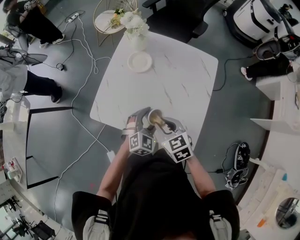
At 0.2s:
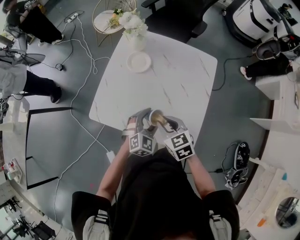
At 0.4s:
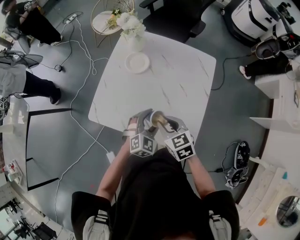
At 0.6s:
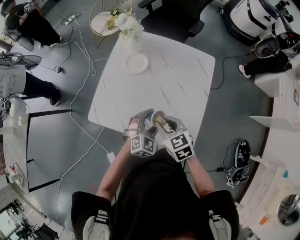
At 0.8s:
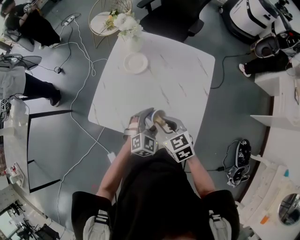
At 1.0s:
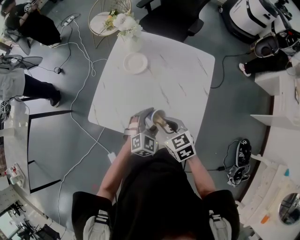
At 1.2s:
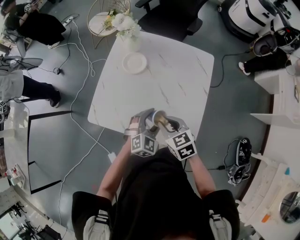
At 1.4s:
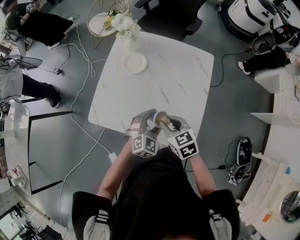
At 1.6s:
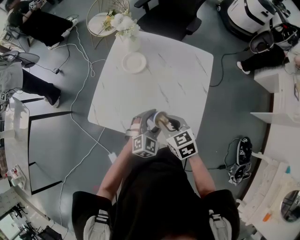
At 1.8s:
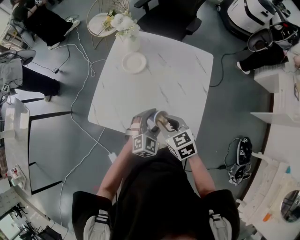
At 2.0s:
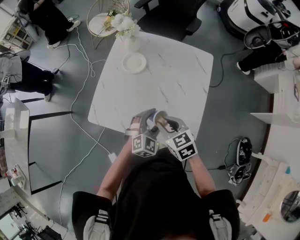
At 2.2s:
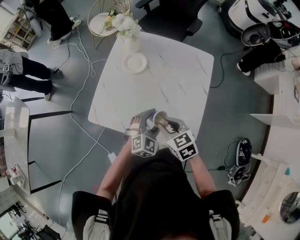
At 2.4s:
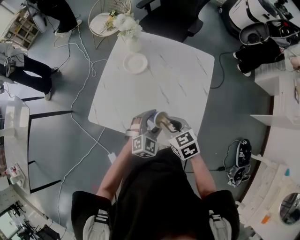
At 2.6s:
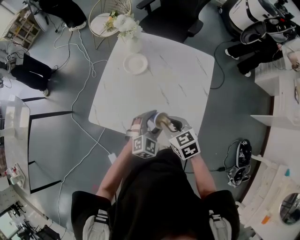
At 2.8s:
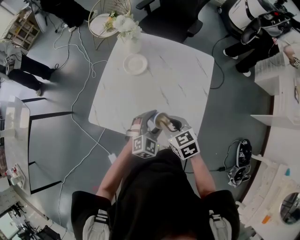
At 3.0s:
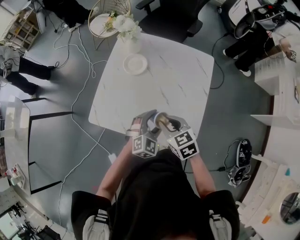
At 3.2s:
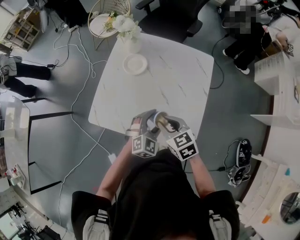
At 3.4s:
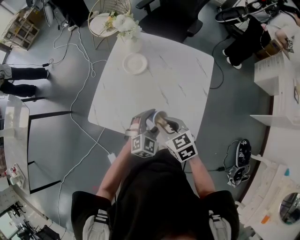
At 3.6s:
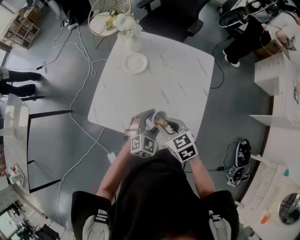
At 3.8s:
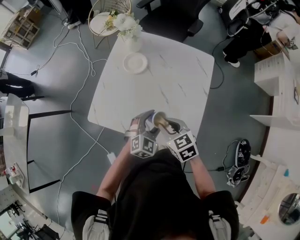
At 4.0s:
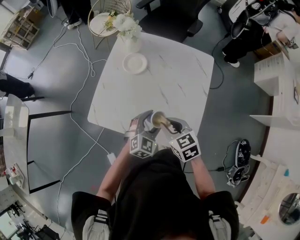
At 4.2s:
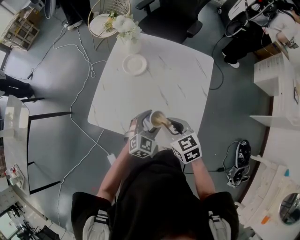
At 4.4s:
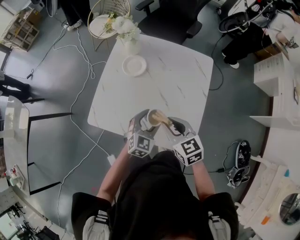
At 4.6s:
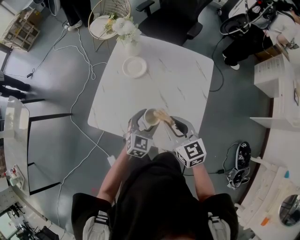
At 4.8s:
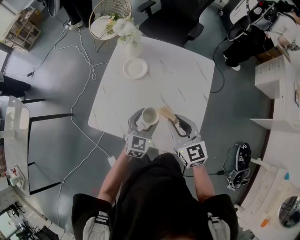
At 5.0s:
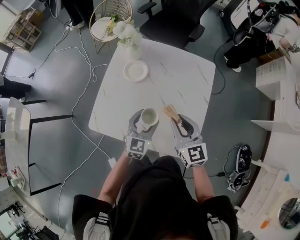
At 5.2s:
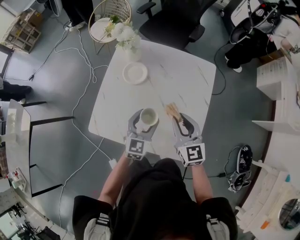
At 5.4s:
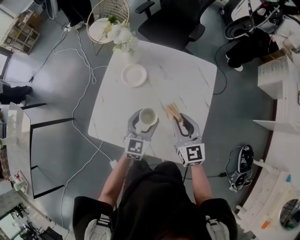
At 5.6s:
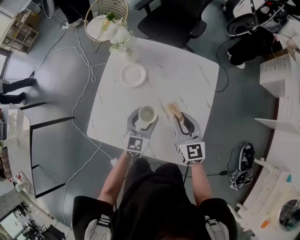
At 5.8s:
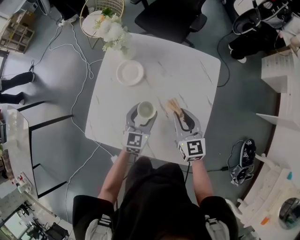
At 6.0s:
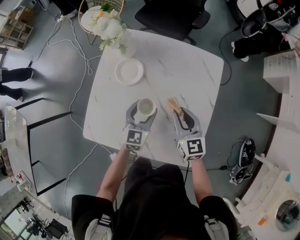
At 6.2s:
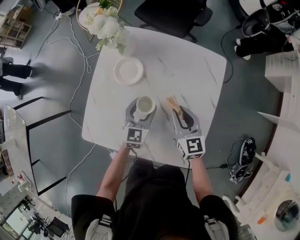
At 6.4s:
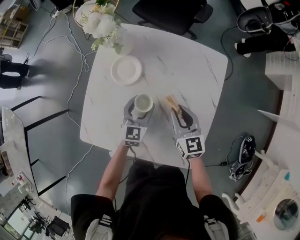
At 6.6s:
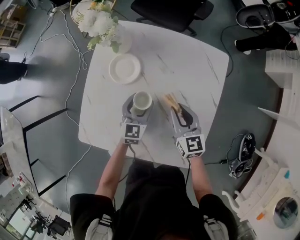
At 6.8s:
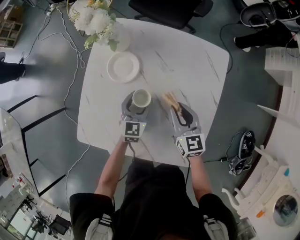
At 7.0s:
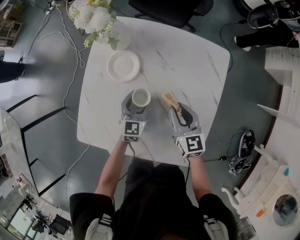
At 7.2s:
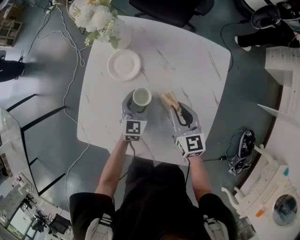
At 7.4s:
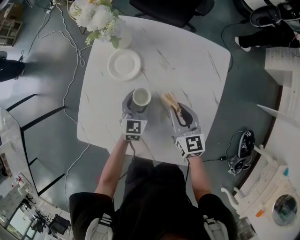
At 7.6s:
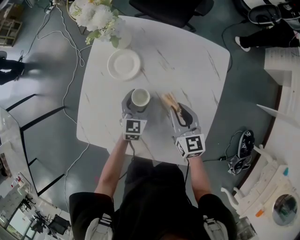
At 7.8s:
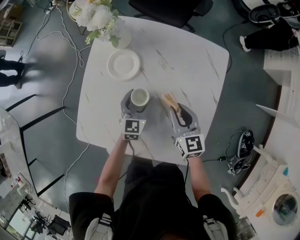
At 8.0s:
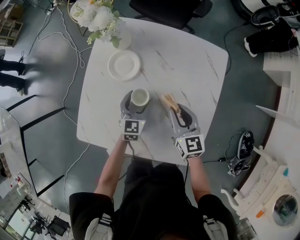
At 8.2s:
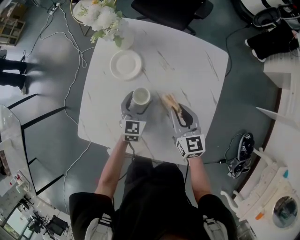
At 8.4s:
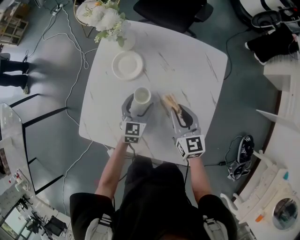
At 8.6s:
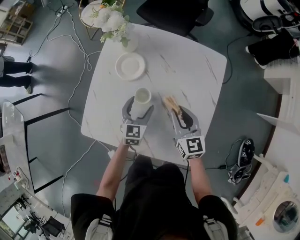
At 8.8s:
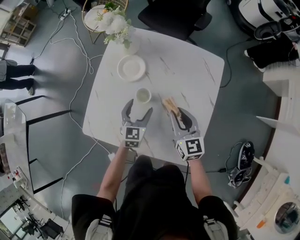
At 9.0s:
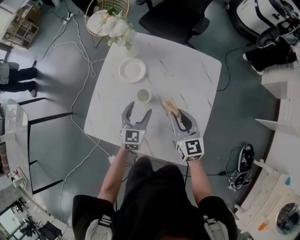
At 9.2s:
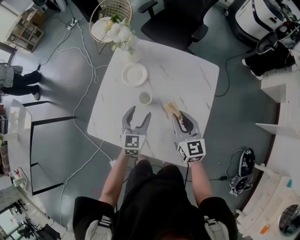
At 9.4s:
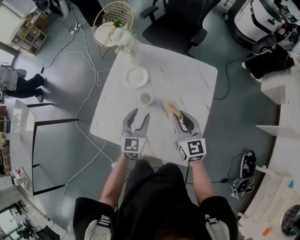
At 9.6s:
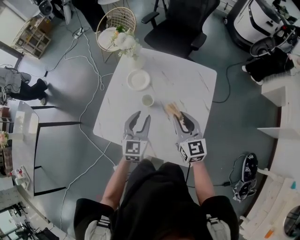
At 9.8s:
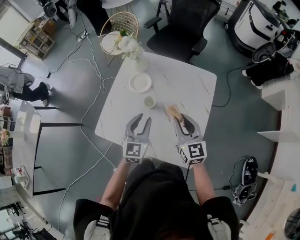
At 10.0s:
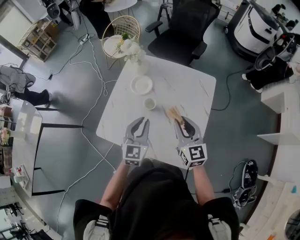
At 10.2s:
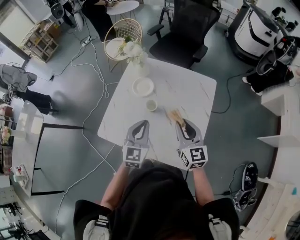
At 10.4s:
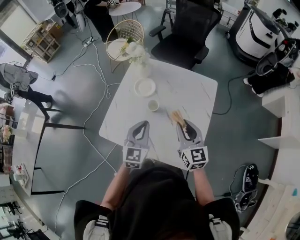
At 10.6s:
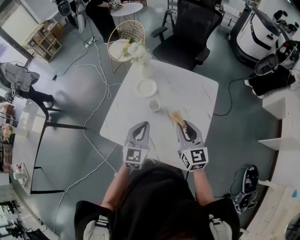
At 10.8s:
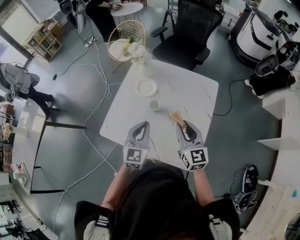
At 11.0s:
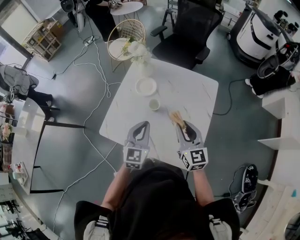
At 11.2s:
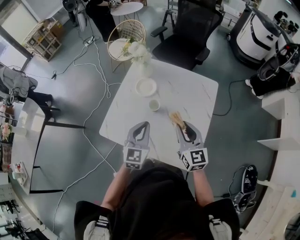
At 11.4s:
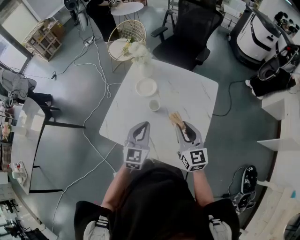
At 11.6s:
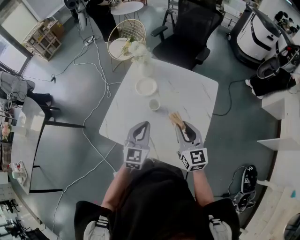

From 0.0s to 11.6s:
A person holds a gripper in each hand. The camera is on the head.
From 0.0s to 2.8s: The grippers stay close to where they were, moving slightly.
From 2.8s to 4.4s: The grippers make only small movements.
From 4.4s to 5.8s: The left gripper heads forward, covering some 15 cm, while the right gripper moves forward and to the right, roughly 15 cm, and changes its angle by approximately 20 degrees.
From 5.8s to 7.2s: The right gripper goes roughly 10 cm downward; the left gripper heads downward and forward, covering roughly 10 cm.
From 7.2s to 8.8s: The right gripper moves upward, approximately 5 cm. The left gripper travels backward and upward by roughly 10 cm.
From 8.8s to 10.2s: The two grippers go about 20 cm upward and backward. The left gripper closes.
From 10.2s to 11.6s: The grippers move only a little.

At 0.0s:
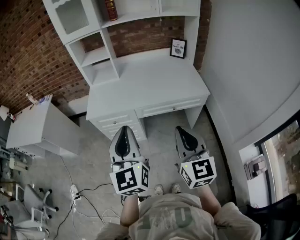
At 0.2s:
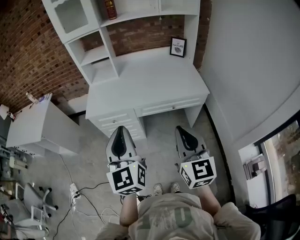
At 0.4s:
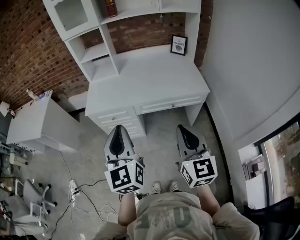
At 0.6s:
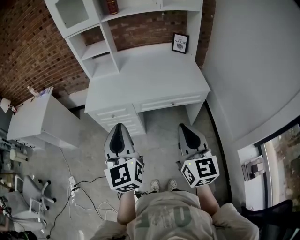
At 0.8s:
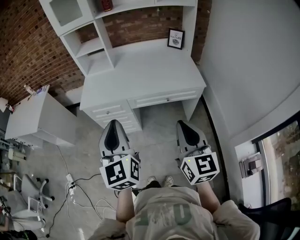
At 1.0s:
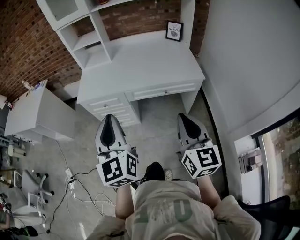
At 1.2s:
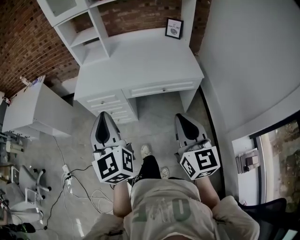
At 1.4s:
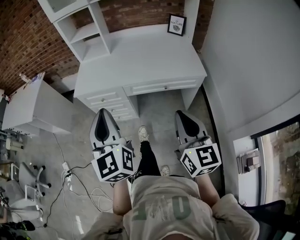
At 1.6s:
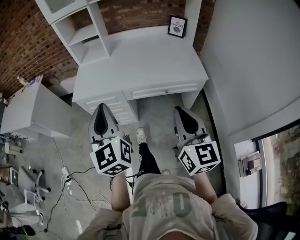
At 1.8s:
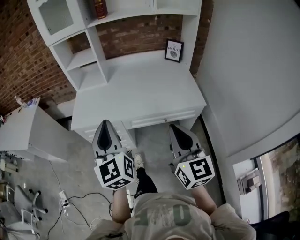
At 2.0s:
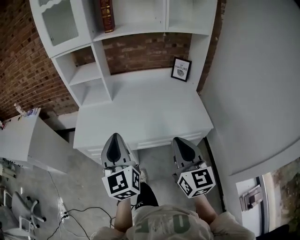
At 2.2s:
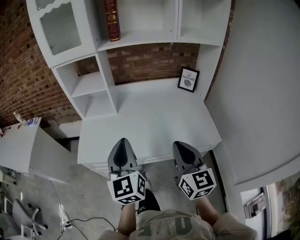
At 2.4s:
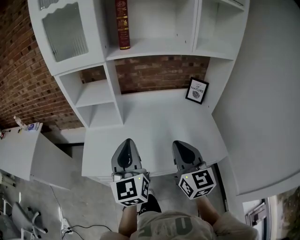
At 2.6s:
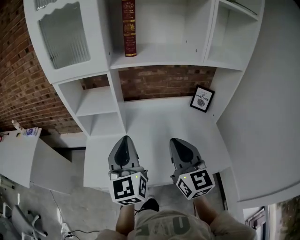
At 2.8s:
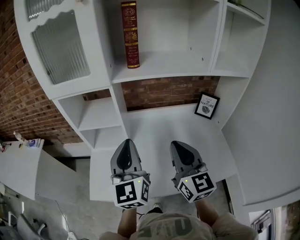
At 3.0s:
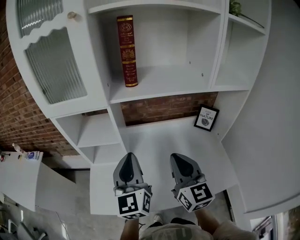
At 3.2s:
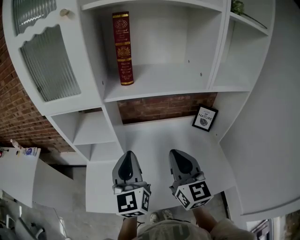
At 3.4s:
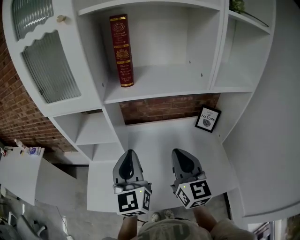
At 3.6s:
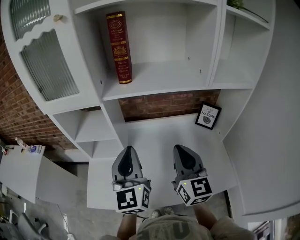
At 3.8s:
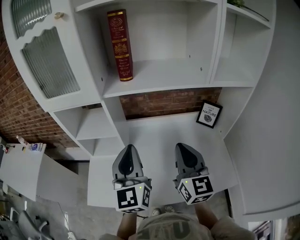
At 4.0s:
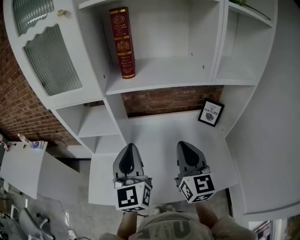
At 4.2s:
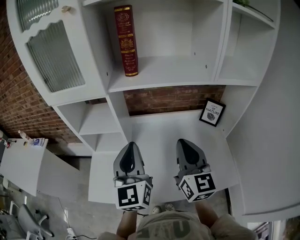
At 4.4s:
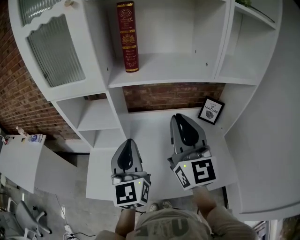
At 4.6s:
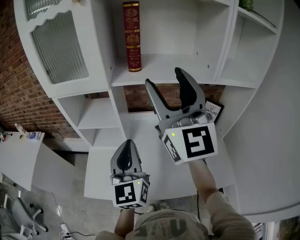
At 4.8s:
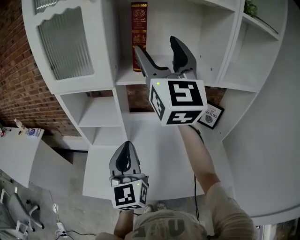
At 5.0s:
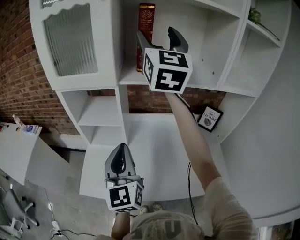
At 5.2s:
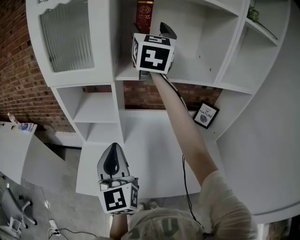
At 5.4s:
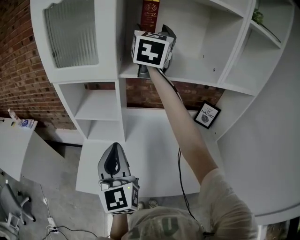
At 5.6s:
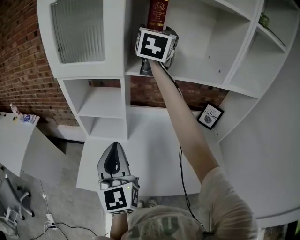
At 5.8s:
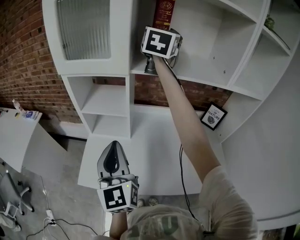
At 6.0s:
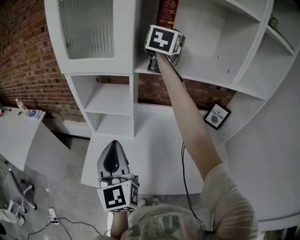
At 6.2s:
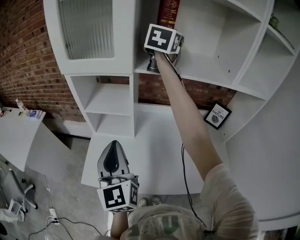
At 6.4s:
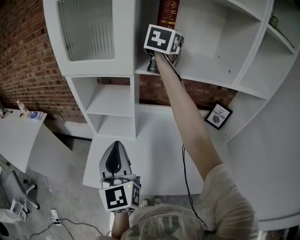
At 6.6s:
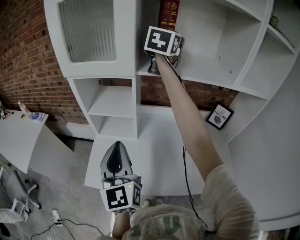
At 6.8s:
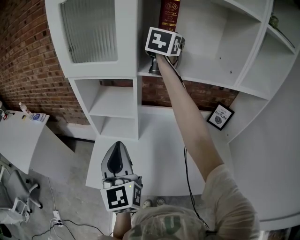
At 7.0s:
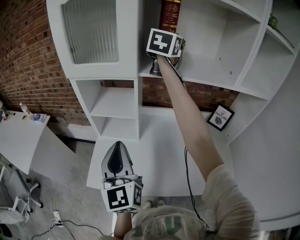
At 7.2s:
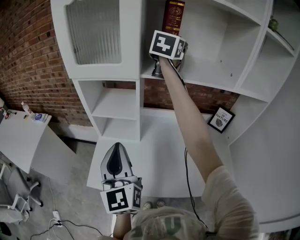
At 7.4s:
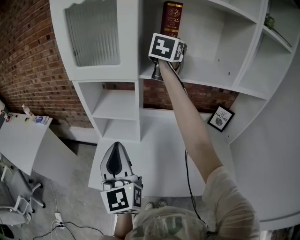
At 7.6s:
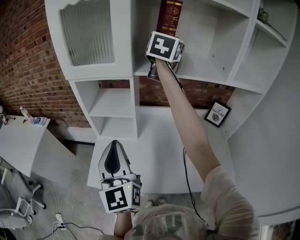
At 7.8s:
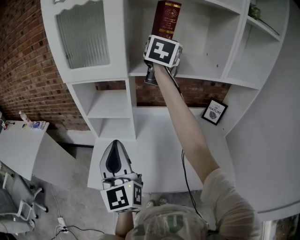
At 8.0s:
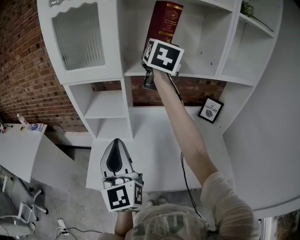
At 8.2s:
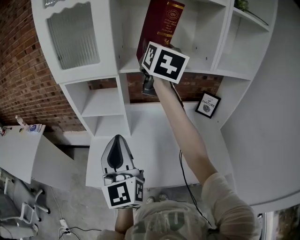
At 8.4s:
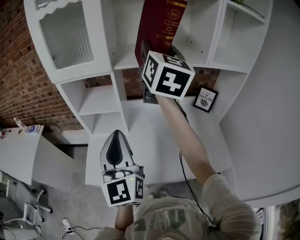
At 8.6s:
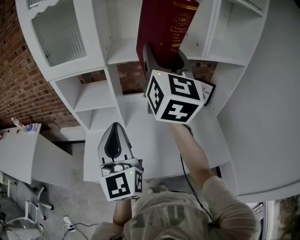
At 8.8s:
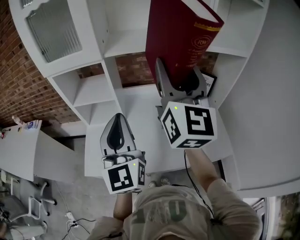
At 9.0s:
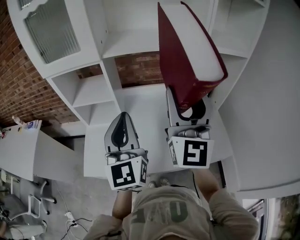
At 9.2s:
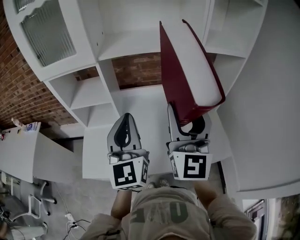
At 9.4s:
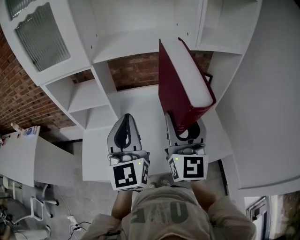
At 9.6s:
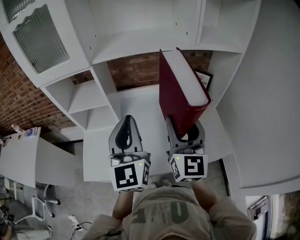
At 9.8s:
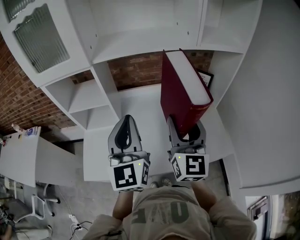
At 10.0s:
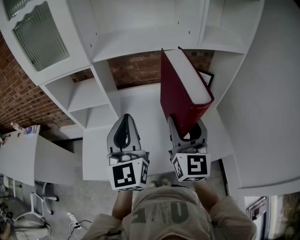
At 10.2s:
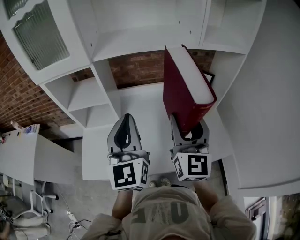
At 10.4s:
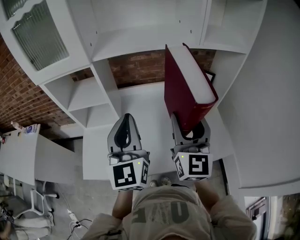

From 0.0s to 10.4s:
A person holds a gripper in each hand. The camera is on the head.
From 0.0s to 1.4s: The right gripper shifts about 5 cm to the right.
From 1.4s to 3.0s: Both grippers are carried forward, about 50 cm.
From 3.0s to 4.4s: The right gripper goes approximately 10 cm upward.
From 4.4s to 6.0s: The right gripper moves forward and upward, about 30 cm, and opens, while the left gripper heads to the left, covering roughly 10 cm.
From 6.0s to 7.4s: The grippers make only small movements.
From 7.4s to 9.0s: The left gripper is displaced to the right by some 10 cm, while the right gripper is displaced backward by some 35 cm, and turns by approximately 30 degrees.
From 9.0s to 10.4s: The right gripper heads downward, covering about 10 cm.

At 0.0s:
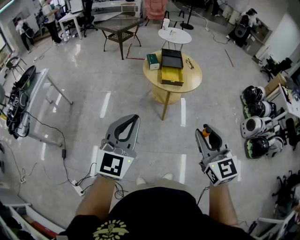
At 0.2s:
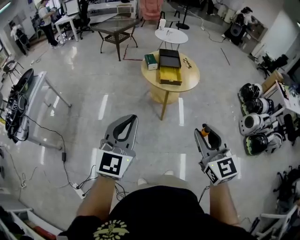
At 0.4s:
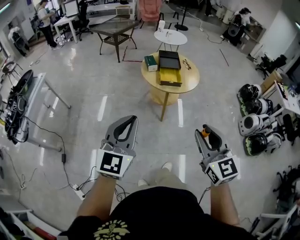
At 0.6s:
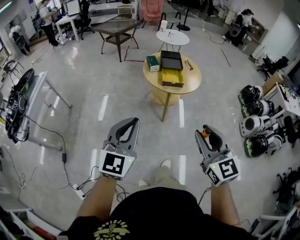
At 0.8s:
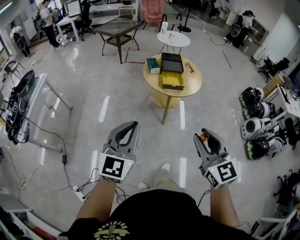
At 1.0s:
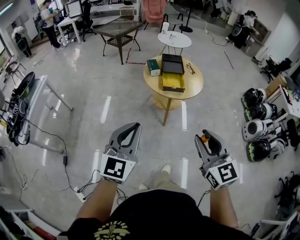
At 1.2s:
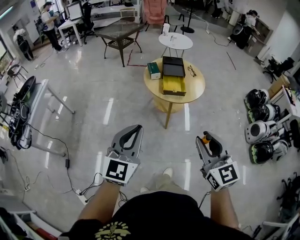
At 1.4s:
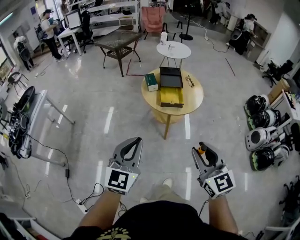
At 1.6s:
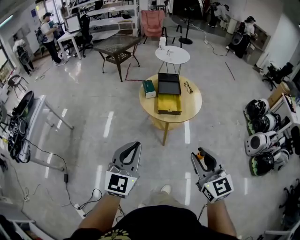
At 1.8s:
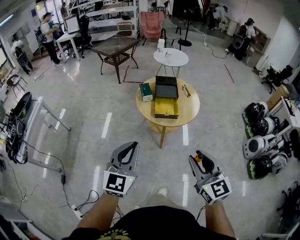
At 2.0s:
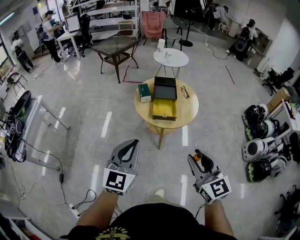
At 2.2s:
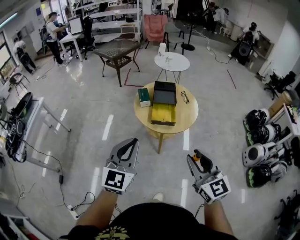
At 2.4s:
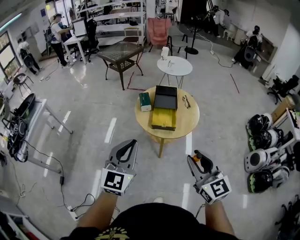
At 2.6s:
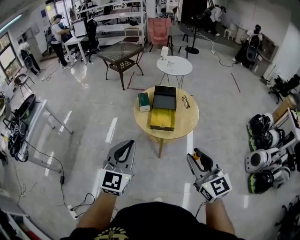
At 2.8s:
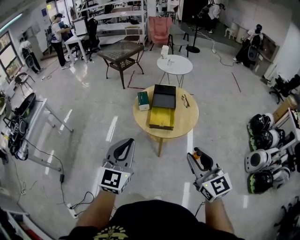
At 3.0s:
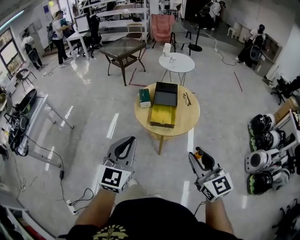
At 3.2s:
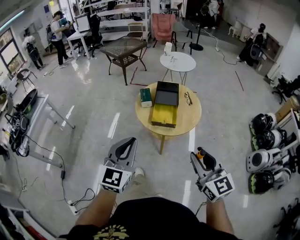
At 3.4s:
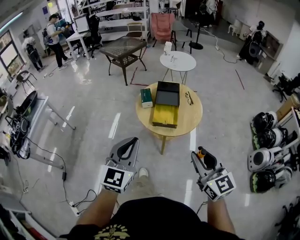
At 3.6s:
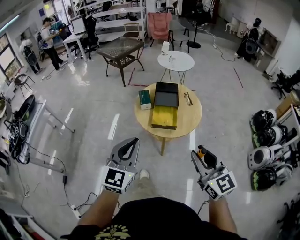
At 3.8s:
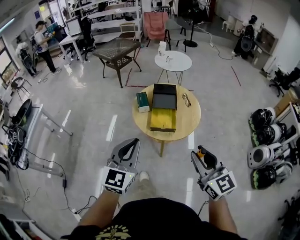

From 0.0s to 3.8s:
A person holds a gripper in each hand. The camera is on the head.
From 0.0s to 1.2s: Both grippers move forward, roughly 5 cm.
From 1.2s to 2.6s: The grippers both shift forward and to the right by about 20 cm.
From 2.6s to 3.8s: The grippers both shift forward by approximately 5 cm.
